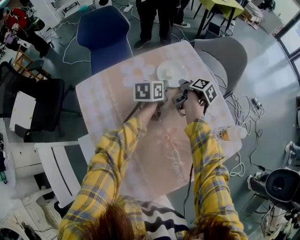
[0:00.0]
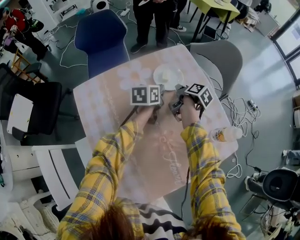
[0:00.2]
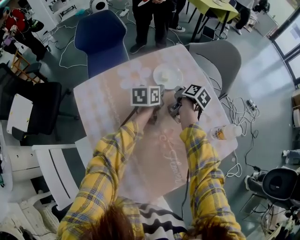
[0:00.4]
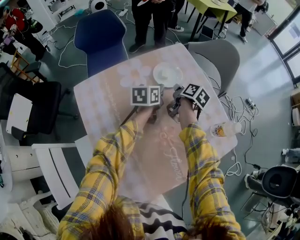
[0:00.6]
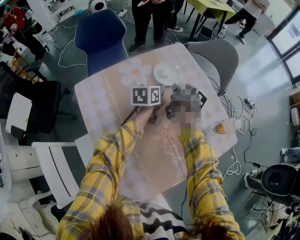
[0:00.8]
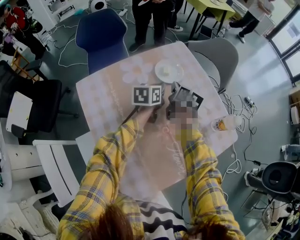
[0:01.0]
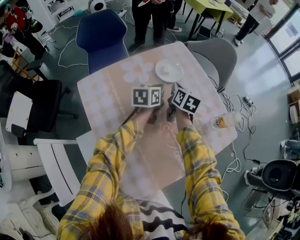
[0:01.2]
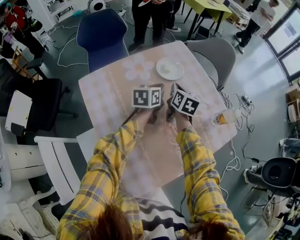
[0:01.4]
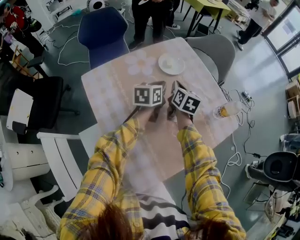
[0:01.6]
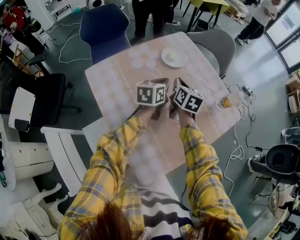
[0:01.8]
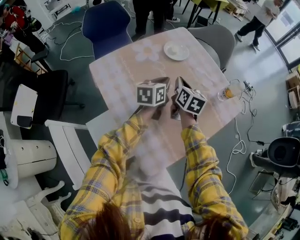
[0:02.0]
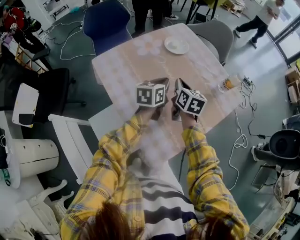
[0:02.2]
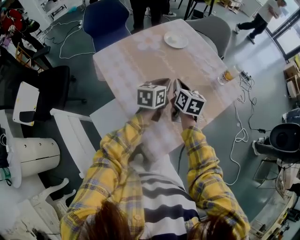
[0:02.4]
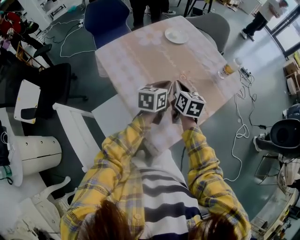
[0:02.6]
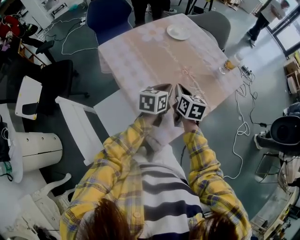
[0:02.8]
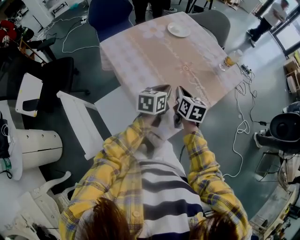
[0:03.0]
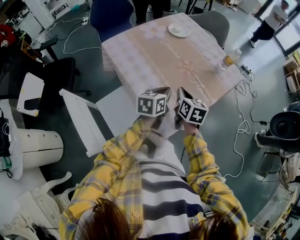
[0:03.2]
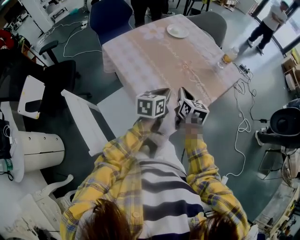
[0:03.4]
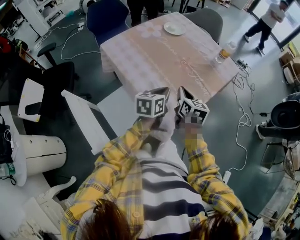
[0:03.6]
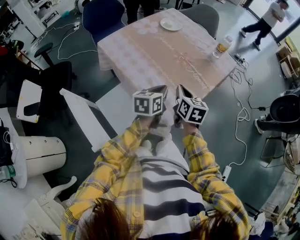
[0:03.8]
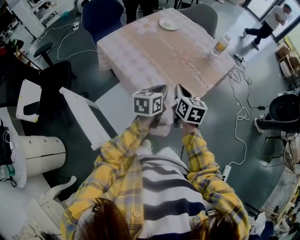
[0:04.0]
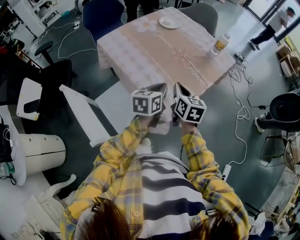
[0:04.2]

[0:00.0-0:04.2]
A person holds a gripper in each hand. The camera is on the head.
0:00.0 to 0:01.4: The right gripper travels backward and upward by about 10 cm, twists approximately 50 degrees counterclockwise, seen from behind, and closes, while the left gripper shifts roughly 10 cm backward.
0:01.4 to 0:02.8: The grippers both shift backward by about 30 cm.
0:02.8 to 0:04.2: The grippers both shift backward by approximately 10 cm.

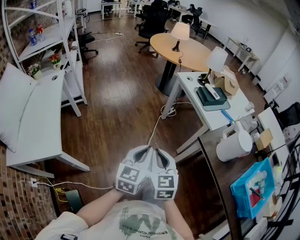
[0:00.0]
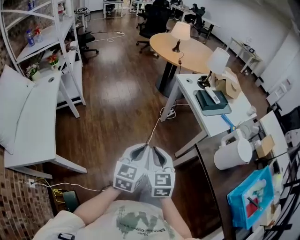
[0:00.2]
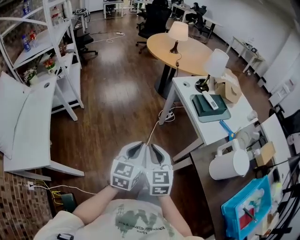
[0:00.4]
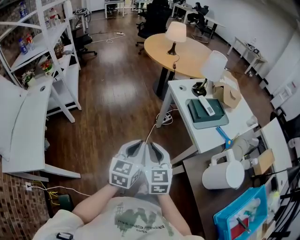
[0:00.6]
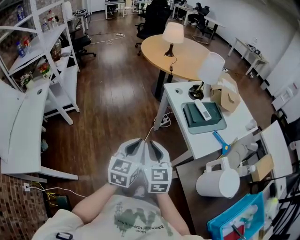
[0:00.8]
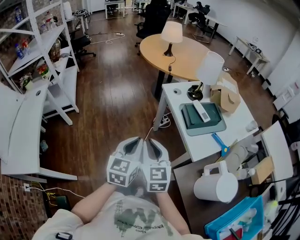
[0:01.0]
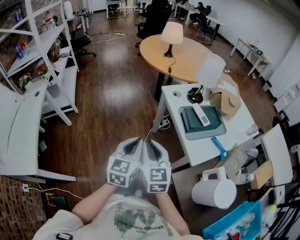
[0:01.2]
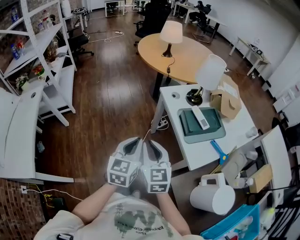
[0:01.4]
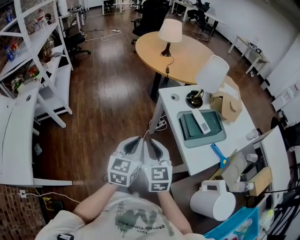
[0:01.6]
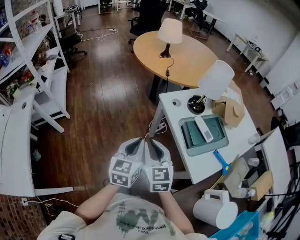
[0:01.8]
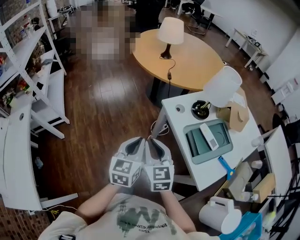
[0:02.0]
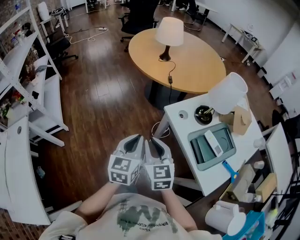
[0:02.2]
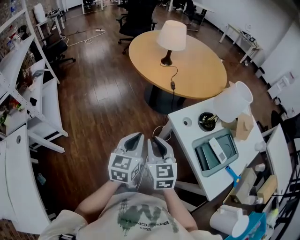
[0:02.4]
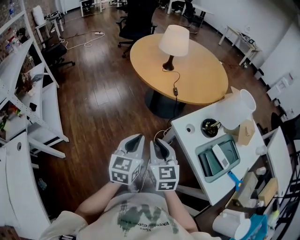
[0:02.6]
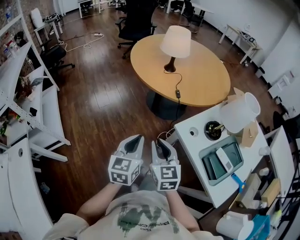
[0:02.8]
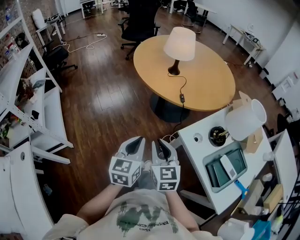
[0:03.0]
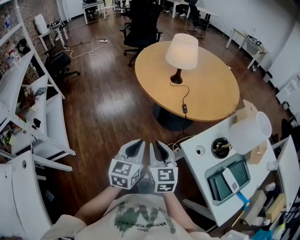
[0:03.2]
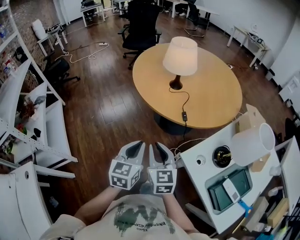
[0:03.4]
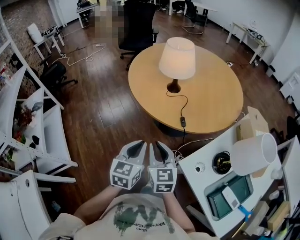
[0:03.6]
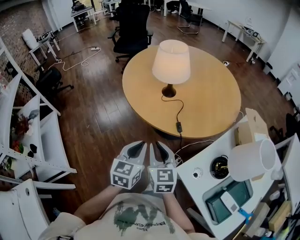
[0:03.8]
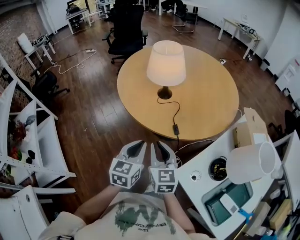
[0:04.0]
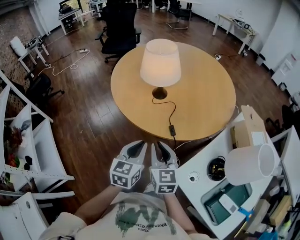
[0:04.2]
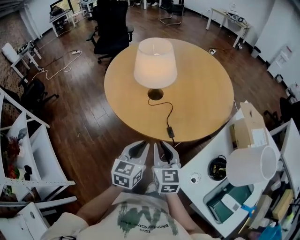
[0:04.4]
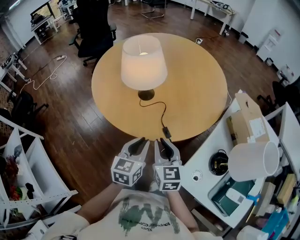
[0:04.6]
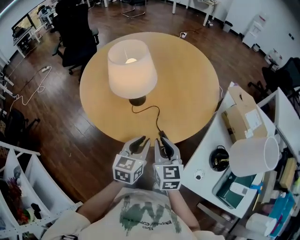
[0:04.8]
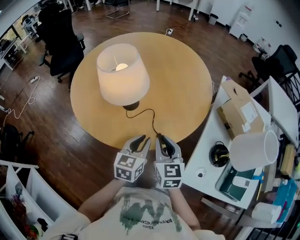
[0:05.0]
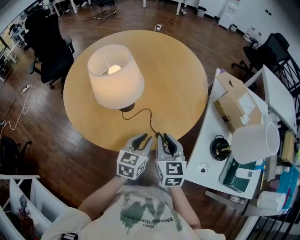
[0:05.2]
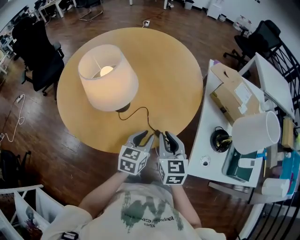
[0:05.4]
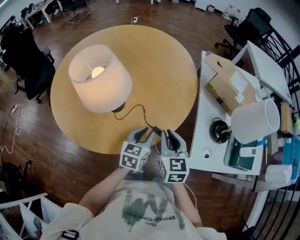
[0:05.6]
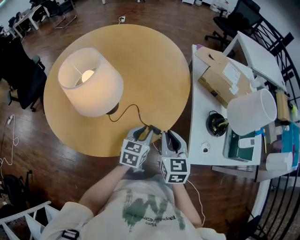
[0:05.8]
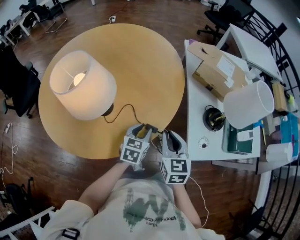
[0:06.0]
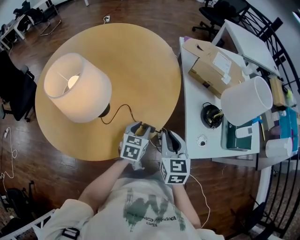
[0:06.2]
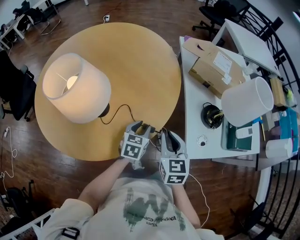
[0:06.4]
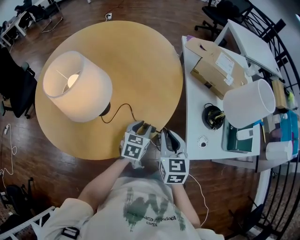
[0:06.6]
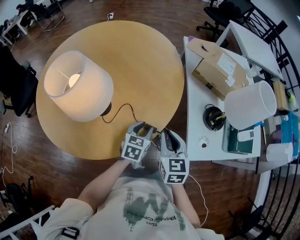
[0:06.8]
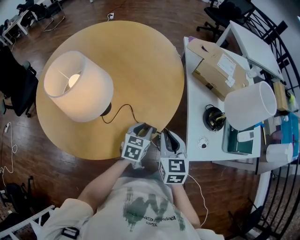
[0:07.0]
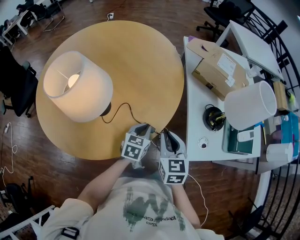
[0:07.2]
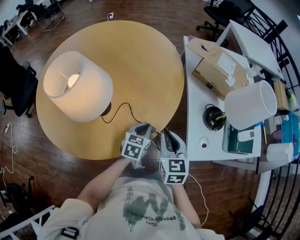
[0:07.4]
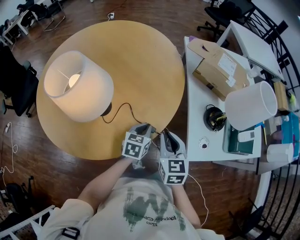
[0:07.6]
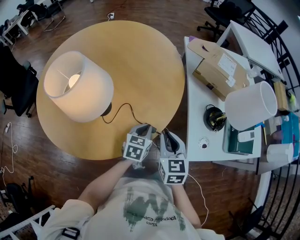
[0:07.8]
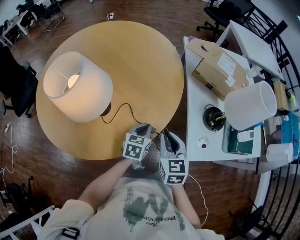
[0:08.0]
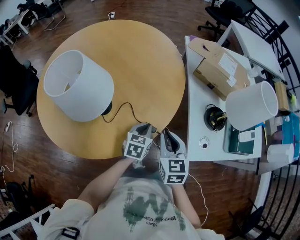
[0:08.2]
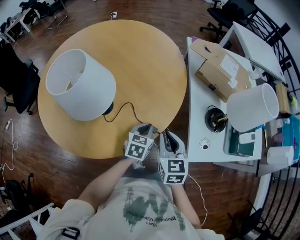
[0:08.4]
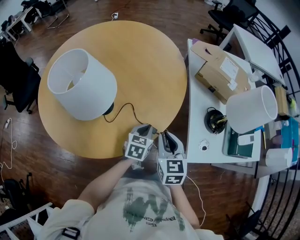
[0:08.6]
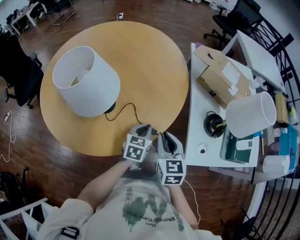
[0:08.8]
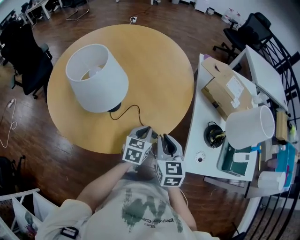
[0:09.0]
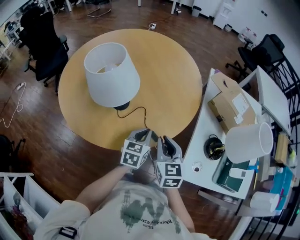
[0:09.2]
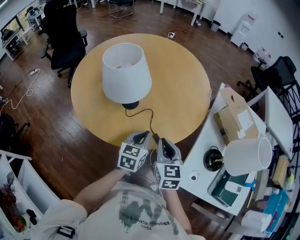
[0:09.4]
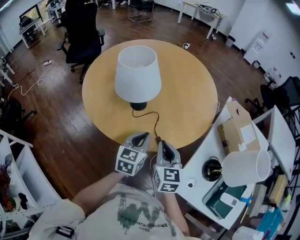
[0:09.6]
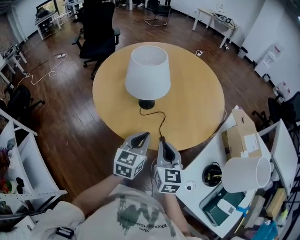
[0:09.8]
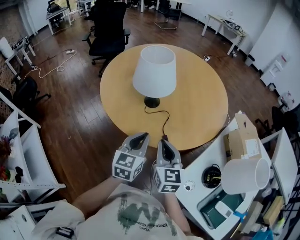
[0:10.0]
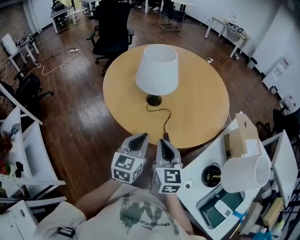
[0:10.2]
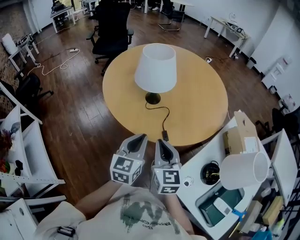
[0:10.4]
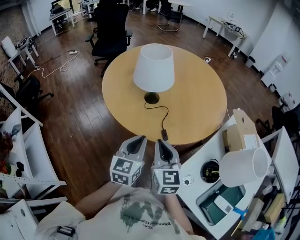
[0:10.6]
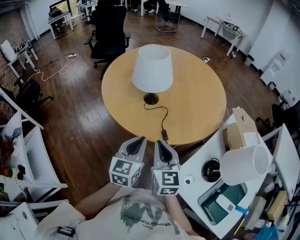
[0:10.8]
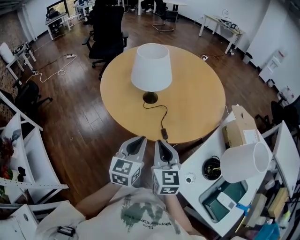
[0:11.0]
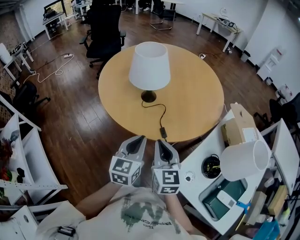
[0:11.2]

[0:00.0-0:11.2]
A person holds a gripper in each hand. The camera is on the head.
0:00.0 to 0:01.6: Both grippers travel together forward and to the right, about 40 cm.
0:01.6 to 0:03.2: Both grippers are carried forward and to the left, roughly 40 cm.
0:03.2 to 0:04.8: The right gripper moves about 30 cm, and changes its angle by some 30 degrees. Meanwhile the left gripper moves approximately 35 cm, and turns by approximately 30 degrees.
0:04.8 to 0:06.4: The right gripper ends up roughly 10 cm from where it was, and swivels about 40 degrees. Meanwhile the left gripper shifts some 10 cm downward, and swivels approximately 40 degrees.
0:06.4 to 0:08.0: The left gripper closes its fingers.
0:08.0 to 0:09.6: The right gripper moves upward, about 5 cm, and changes its angle by some 30 degrees, while the left gripper heads upward, covering about 15 cm, and changes its angle by roughly 40 degrees.
0:09.6 to 0:11.2: The right gripper heads backward, covering about 10 cm. Meanwhile the left gripper shifts about 15 cm backward and upward.

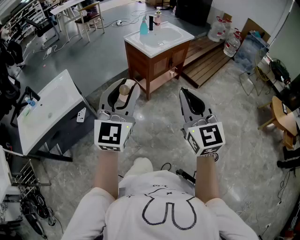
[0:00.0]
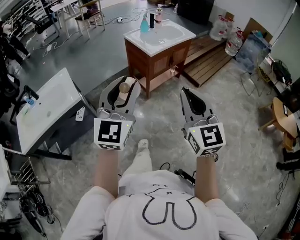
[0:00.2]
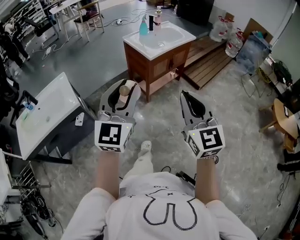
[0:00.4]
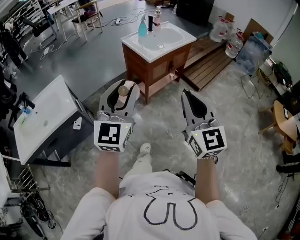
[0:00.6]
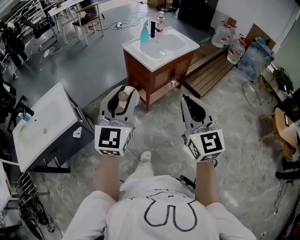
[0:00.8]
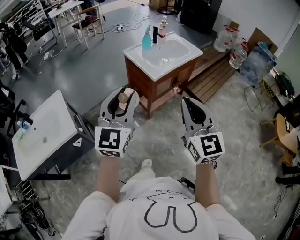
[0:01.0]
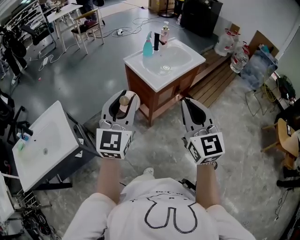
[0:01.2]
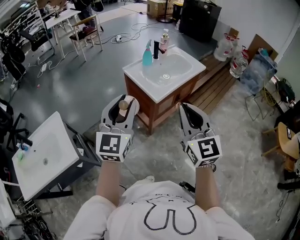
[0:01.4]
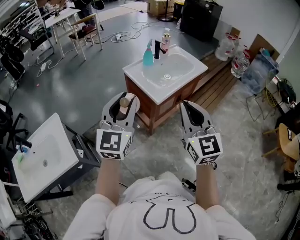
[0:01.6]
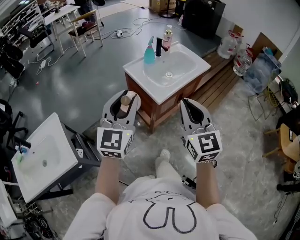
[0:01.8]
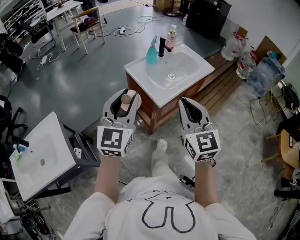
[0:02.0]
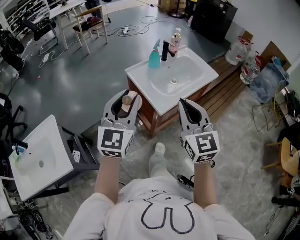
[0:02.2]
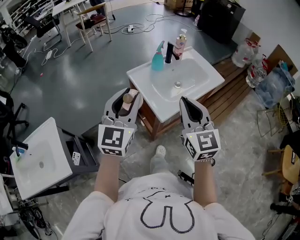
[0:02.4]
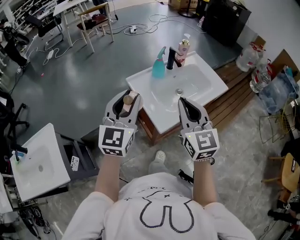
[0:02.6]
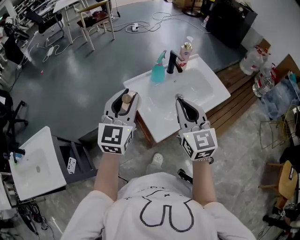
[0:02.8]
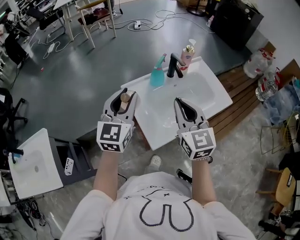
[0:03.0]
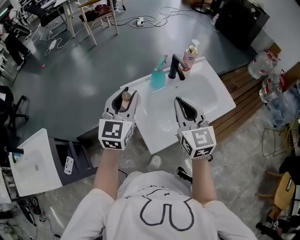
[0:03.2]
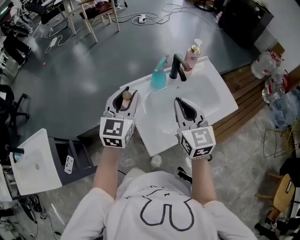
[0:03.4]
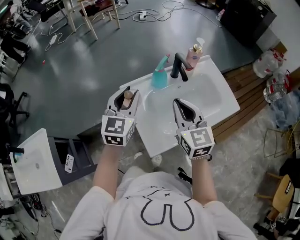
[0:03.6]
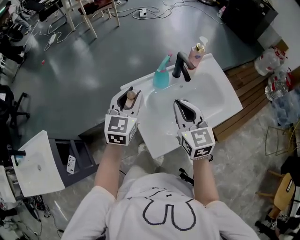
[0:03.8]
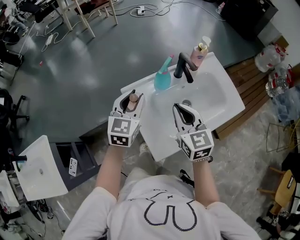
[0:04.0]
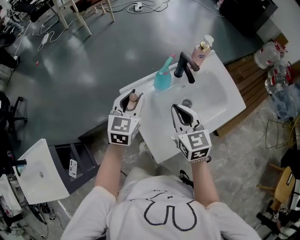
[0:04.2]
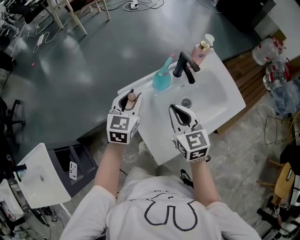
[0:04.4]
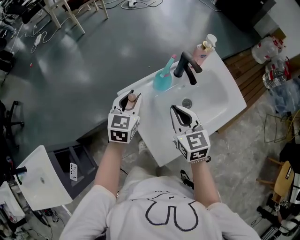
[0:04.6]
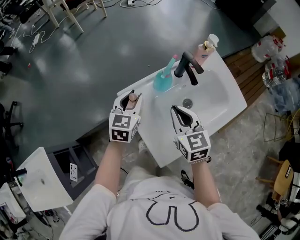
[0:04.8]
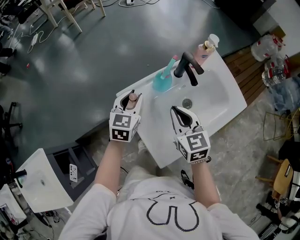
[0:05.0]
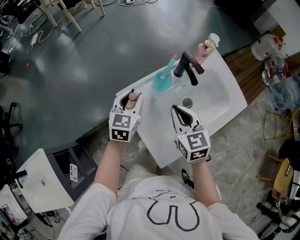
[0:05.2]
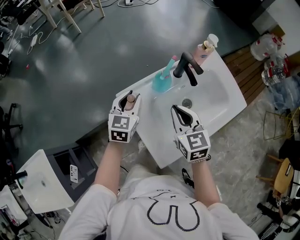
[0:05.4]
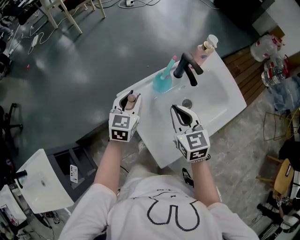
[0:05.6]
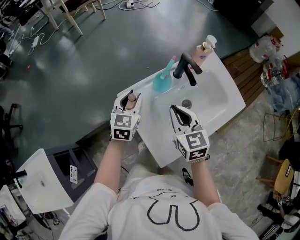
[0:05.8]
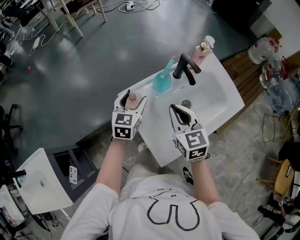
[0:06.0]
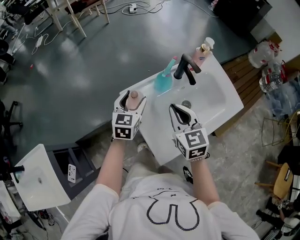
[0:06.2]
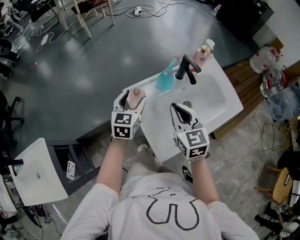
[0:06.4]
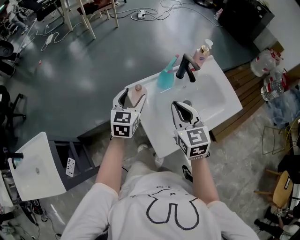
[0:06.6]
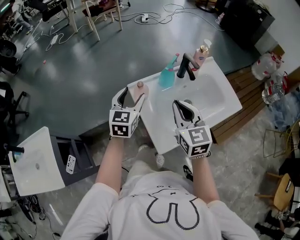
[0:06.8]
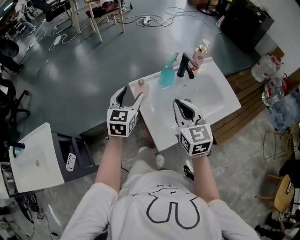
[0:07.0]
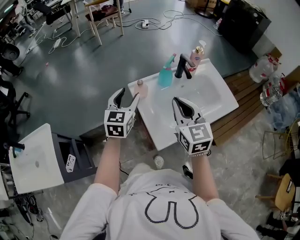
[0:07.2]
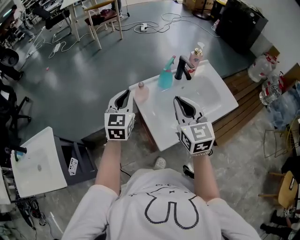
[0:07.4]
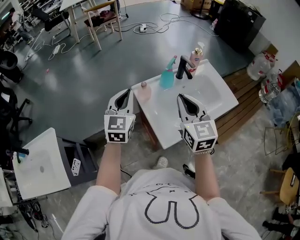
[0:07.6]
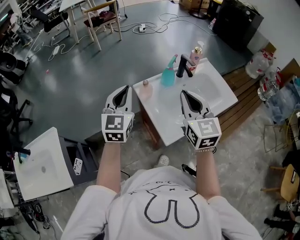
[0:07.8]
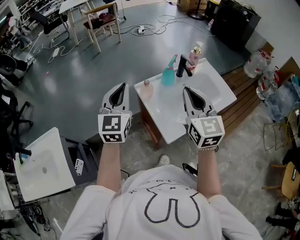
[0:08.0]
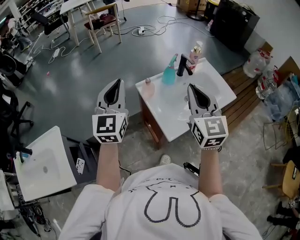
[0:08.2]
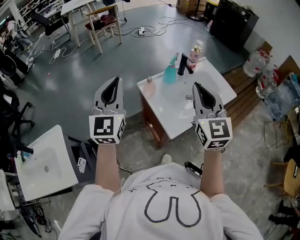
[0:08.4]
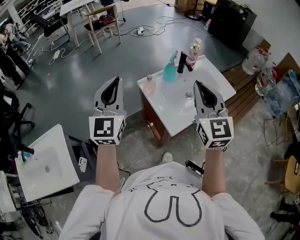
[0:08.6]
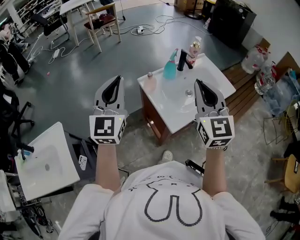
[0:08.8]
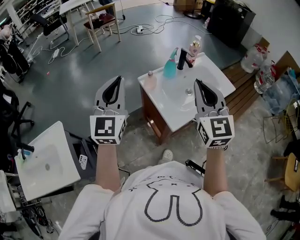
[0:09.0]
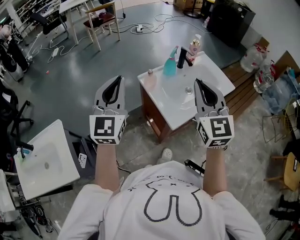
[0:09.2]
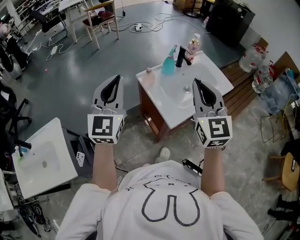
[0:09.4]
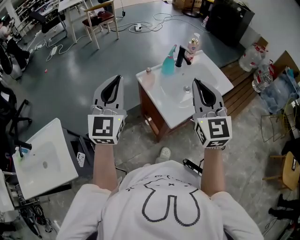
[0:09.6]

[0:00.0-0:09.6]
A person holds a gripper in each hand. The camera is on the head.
0:00.0 to 0:01.6: The grippers both shift forward by some 40 cm.
0:01.6 to 0:03.2: Both grippers travel together forward, about 40 cm. The right gripper changes its angle by about 20 degrees.
0:03.2 to 0:04.8: The two grippers go approximately 20 cm downward and forward. The left gripper changes its angle by roughly 20 degrees.
0:04.8 to 0:06.4: The left gripper opens its fingers.
0:06.4 to 0:08.0: The right gripper goes about 20 cm upward and backward; the left gripper is displaced upward, backward and to the left by roughly 25 cm, changes its angle by approximately 30 degrees, and closes.
0:08.0 to 0:09.6: The right gripper shifts about 10 cm backward; the left gripper moves backward and upward, about 10 cm.
